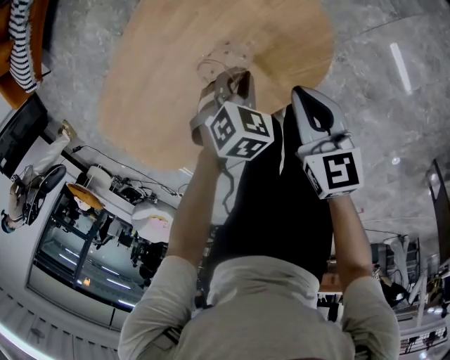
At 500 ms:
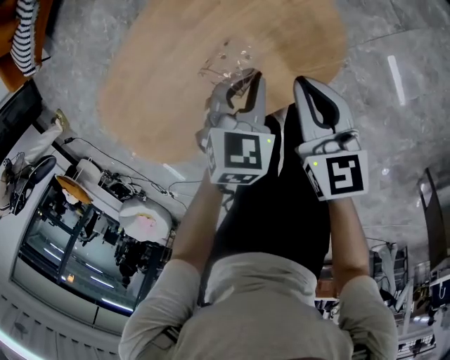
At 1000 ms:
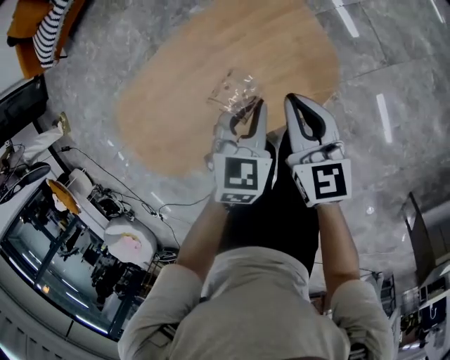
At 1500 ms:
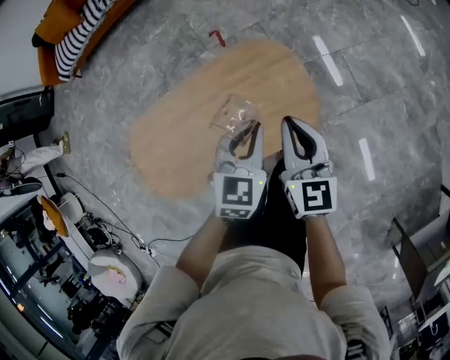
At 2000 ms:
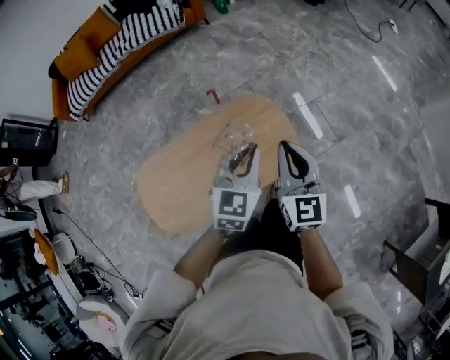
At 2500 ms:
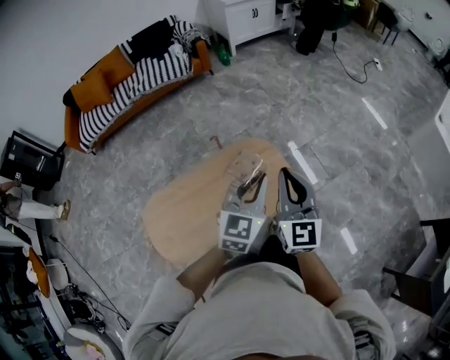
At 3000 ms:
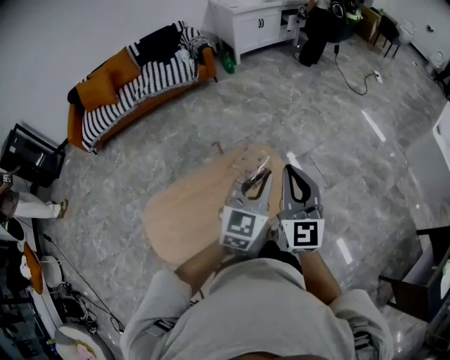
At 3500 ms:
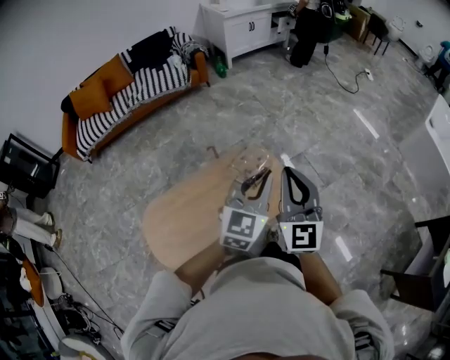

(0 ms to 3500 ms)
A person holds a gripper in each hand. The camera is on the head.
0 ms - 2000 ms: The grippers both shift upward by roughly 50 cm. The left gripper angles its fingers upward, by about 60 degrees, while the right gripper changes its angle by roughly 40 degrees.
2000 ms - 3500 ms: Both grippers travel together upward and backward, roughly 15 cm. The right gripper turns by roughly 20 degrees.

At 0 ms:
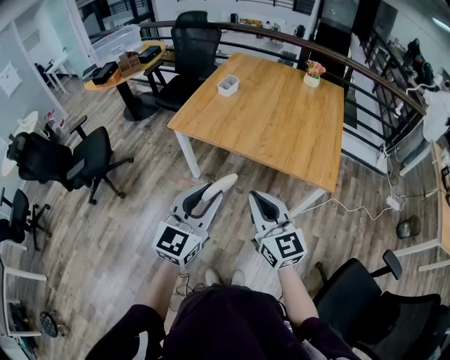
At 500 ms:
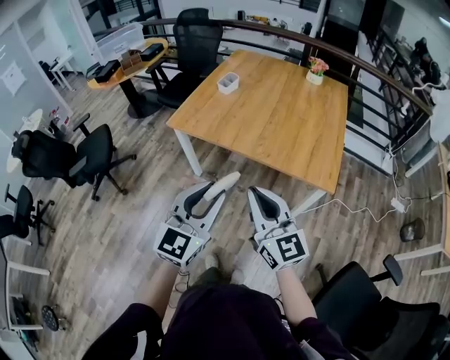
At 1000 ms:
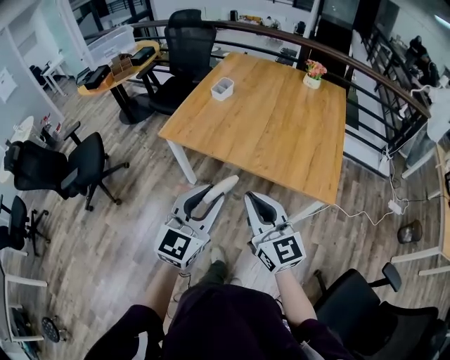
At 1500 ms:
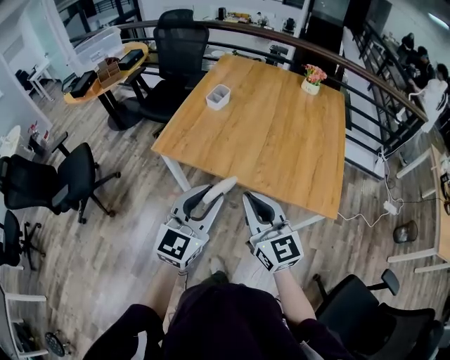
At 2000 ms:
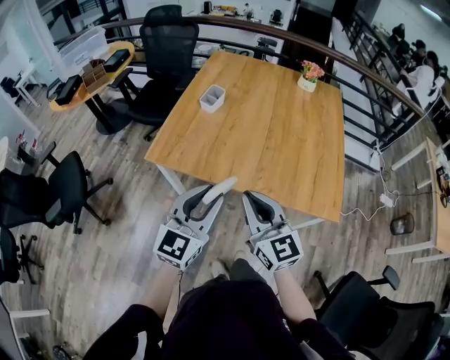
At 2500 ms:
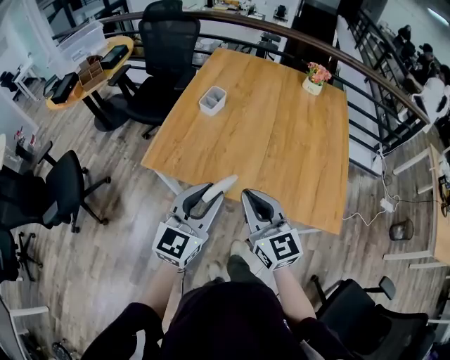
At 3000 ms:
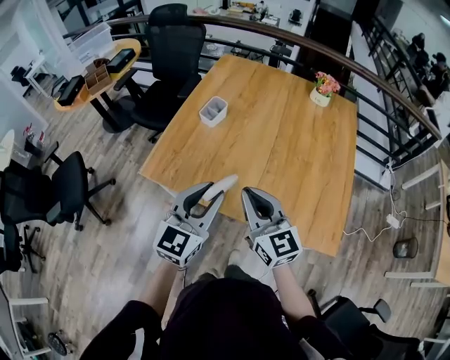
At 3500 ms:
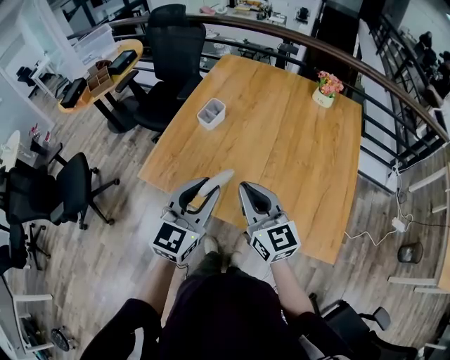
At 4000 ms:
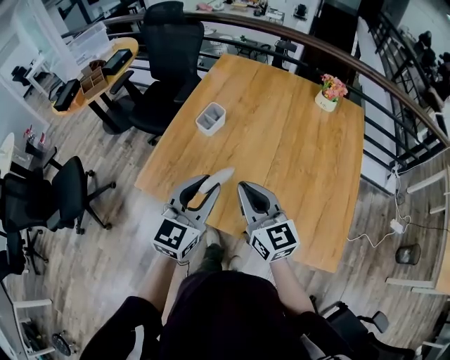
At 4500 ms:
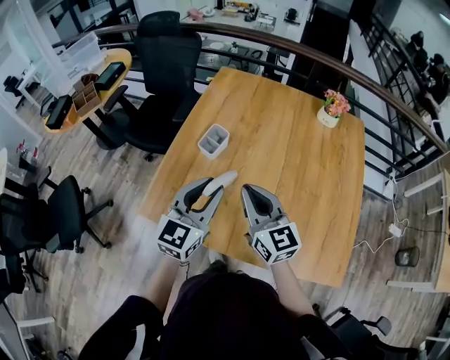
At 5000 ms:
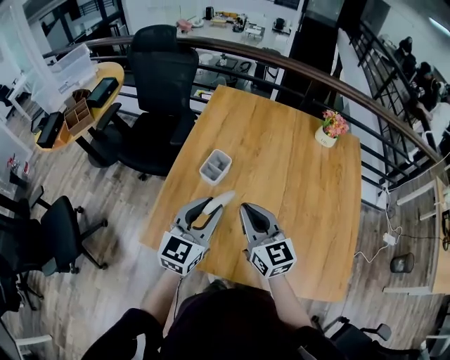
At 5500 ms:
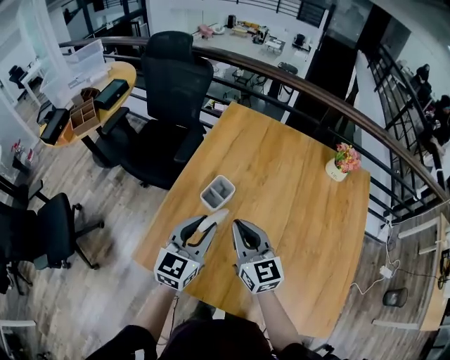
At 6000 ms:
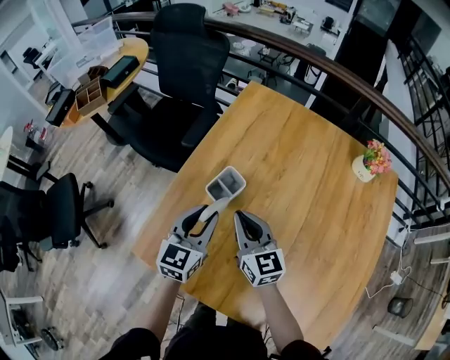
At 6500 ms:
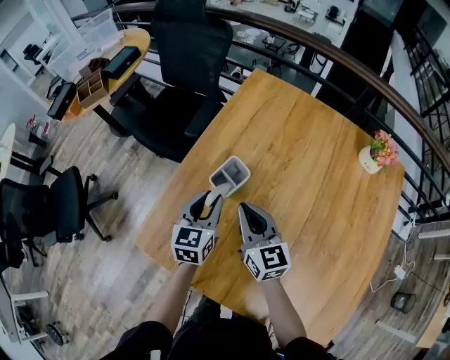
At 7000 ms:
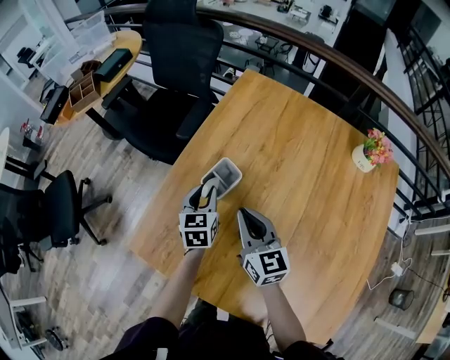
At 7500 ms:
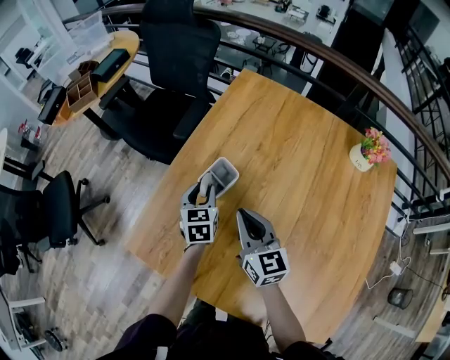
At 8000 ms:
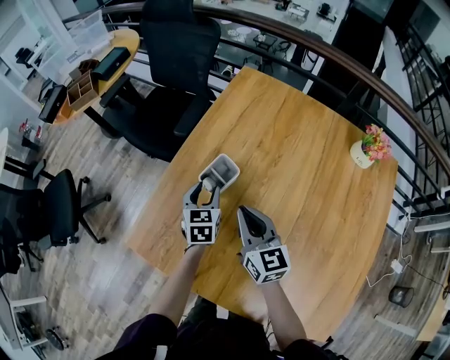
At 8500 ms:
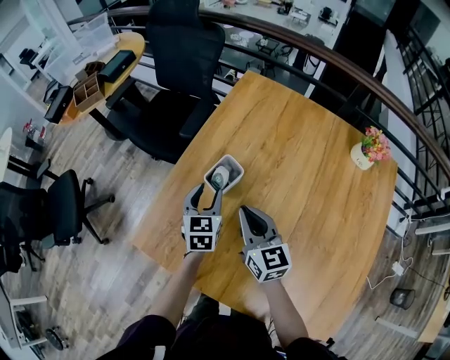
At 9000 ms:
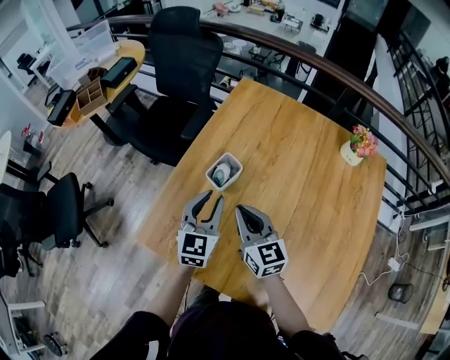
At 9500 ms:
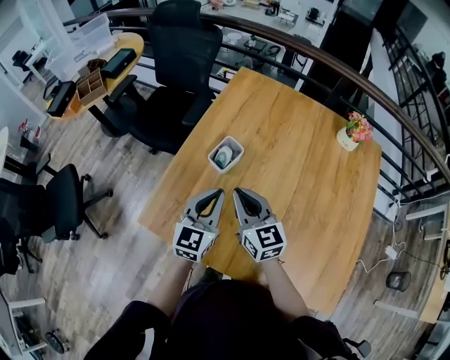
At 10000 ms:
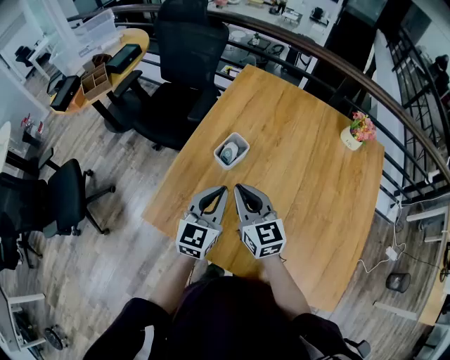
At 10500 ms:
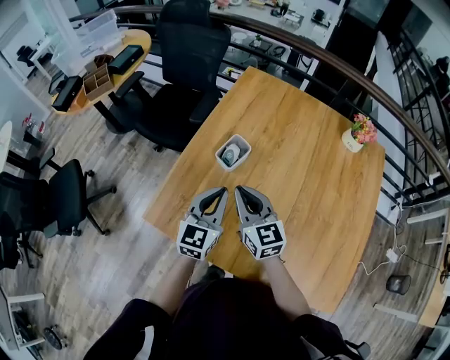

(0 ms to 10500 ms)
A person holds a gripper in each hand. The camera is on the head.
0 ms - 2000 ms: The grippers both shift forward by some 30 cm.
2000 ms - 4000 ms: The grippers both shift forward by roughly 25 cm.
4000 ms - 6500 ms: The right gripper shifts about 35 cm forward, while the left gripper shifts approximately 40 cm forward and downward, and swivels approximately 30 degrees.
8500 ms - 10500 ms: The right gripper shifts about 10 cm backward, to the left and upward; the left gripper heads backward and upward, covering about 20 cm, rotates approximately 30 degrees, and closes.

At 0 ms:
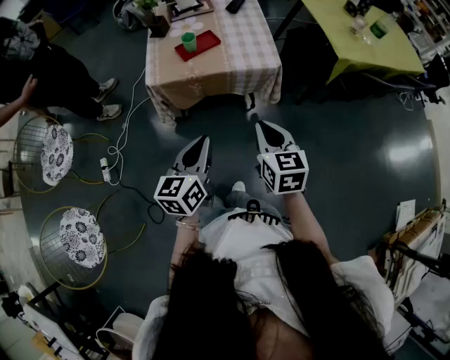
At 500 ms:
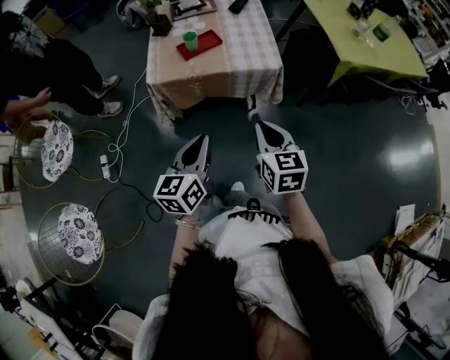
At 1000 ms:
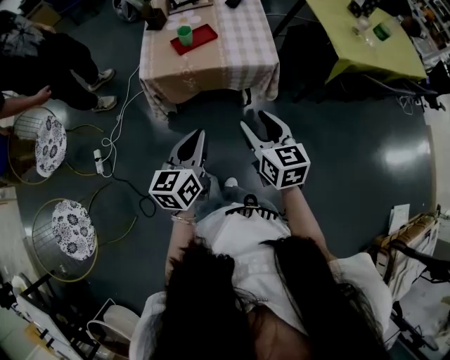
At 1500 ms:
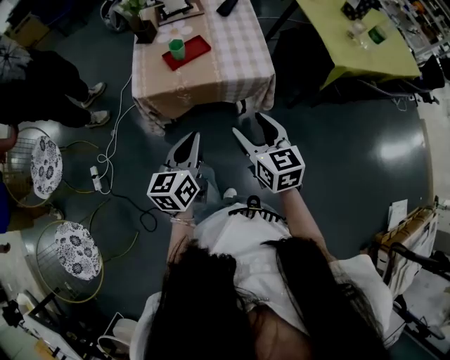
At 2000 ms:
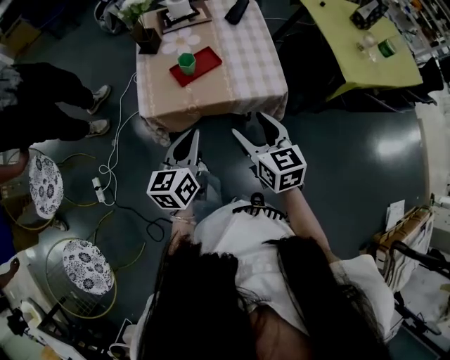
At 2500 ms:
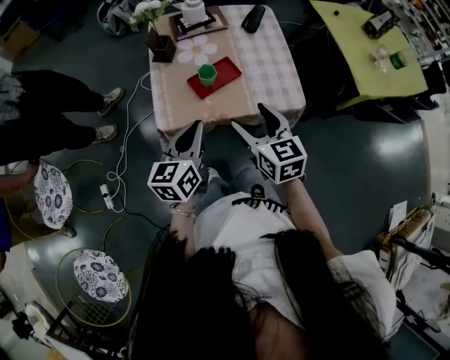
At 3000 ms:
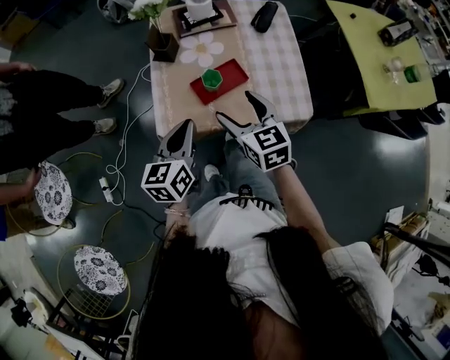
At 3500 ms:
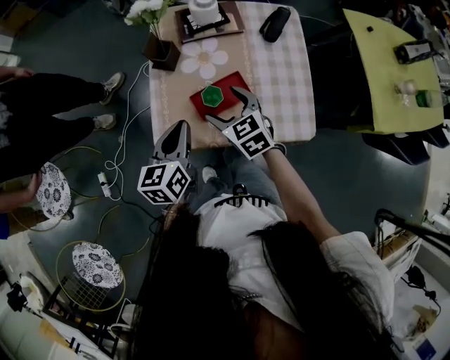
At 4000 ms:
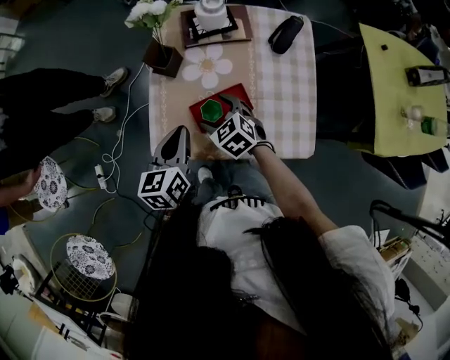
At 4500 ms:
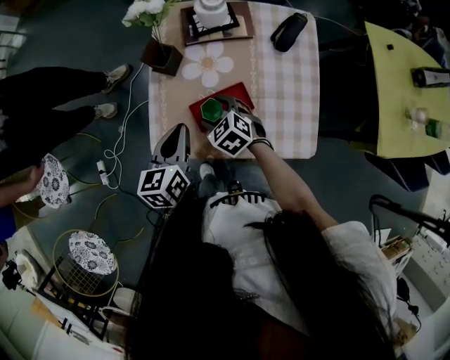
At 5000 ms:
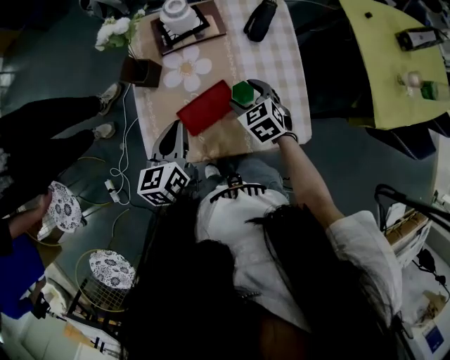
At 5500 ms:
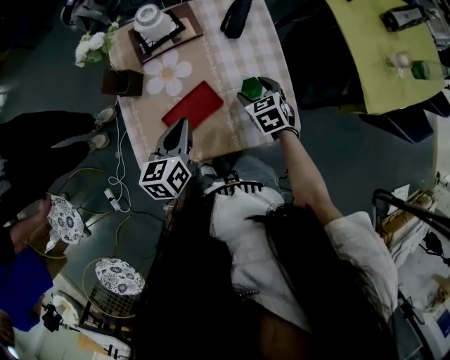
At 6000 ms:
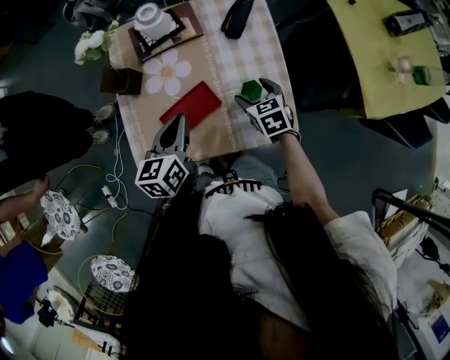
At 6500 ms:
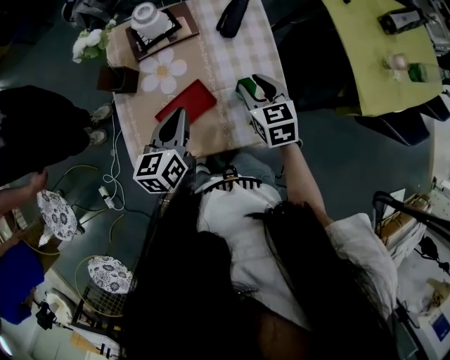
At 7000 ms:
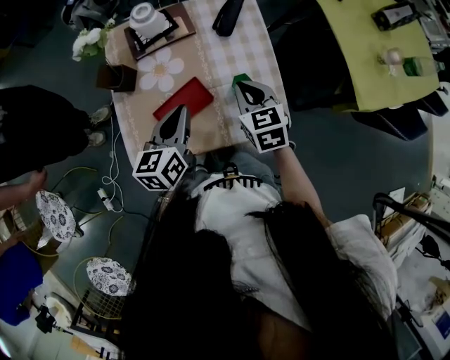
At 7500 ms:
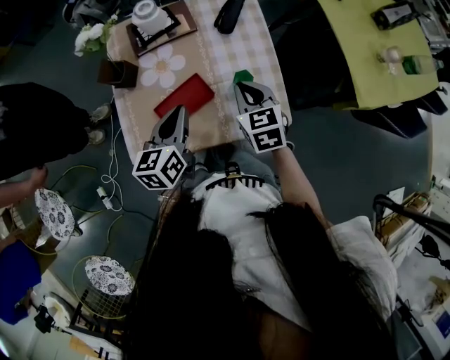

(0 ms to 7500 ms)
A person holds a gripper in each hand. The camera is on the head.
0 ms - 2000 ms: The right gripper is displaced forward and to the left by approximately 20 cm, and opens its fingers; the left gripper moves forward, roughly 20 cm.
2000 ms - 4000 ms: The left gripper travels forward by about 25 cm, while the right gripper heads forward, downward and to the left, covering some 35 cm, and changes its angle by approximately 40 degrees.
4000 ms - 5500 ms: The left gripper moves approximately 10 cm, while the right gripper changes place by roughly 25 cm, and turns by some 30 degrees.
5500 ms - 7500 ms: The right gripper is displaced upward by some 10 cm, and closes its fingers.

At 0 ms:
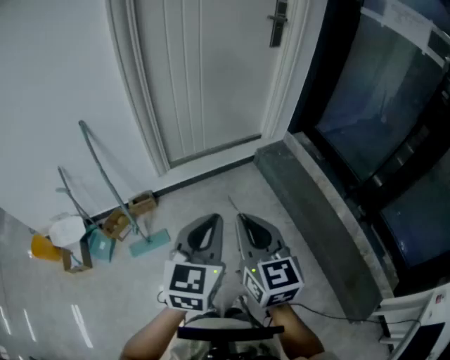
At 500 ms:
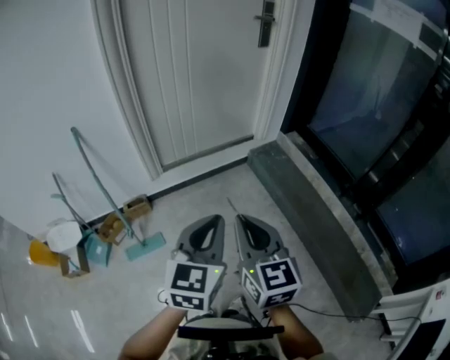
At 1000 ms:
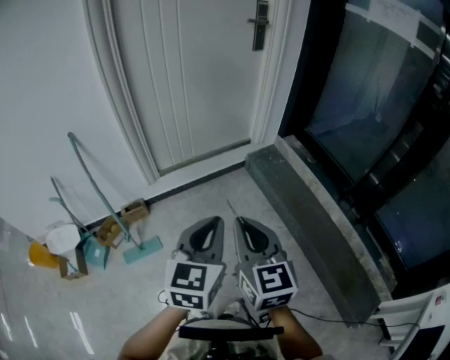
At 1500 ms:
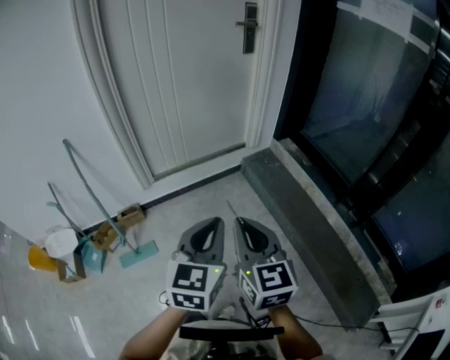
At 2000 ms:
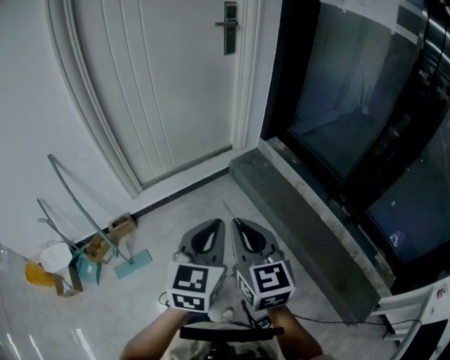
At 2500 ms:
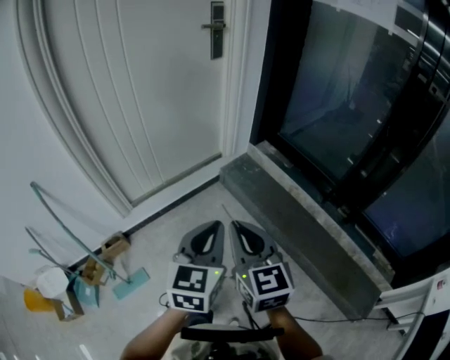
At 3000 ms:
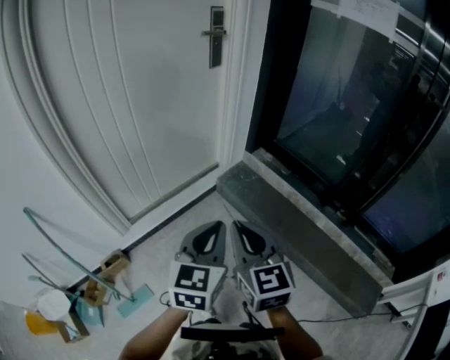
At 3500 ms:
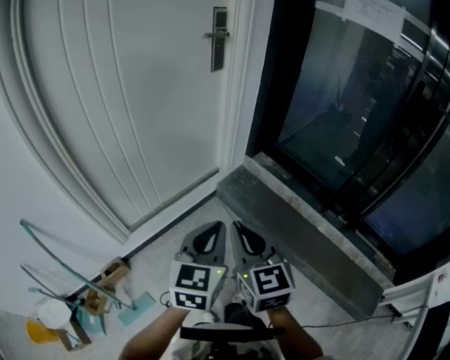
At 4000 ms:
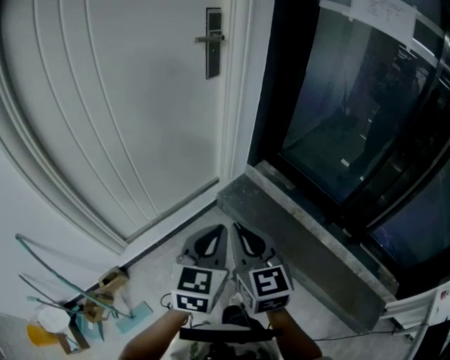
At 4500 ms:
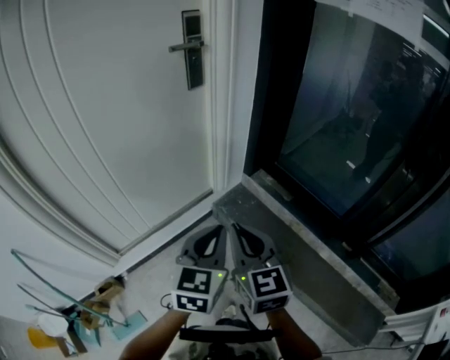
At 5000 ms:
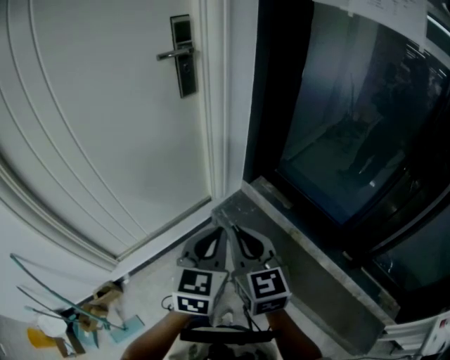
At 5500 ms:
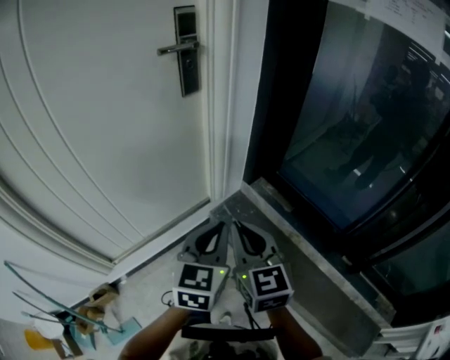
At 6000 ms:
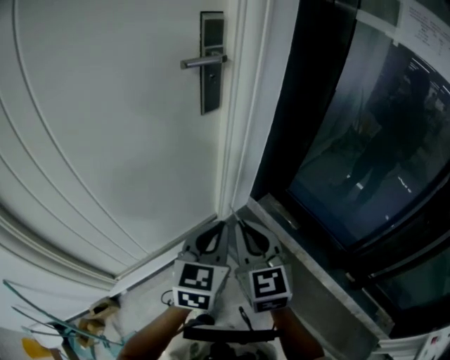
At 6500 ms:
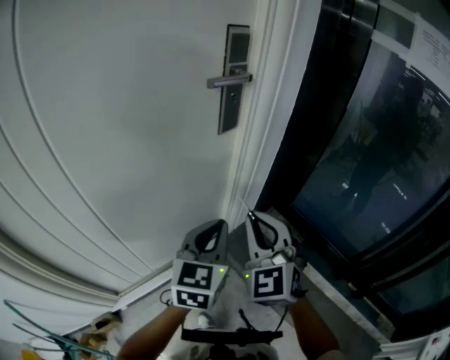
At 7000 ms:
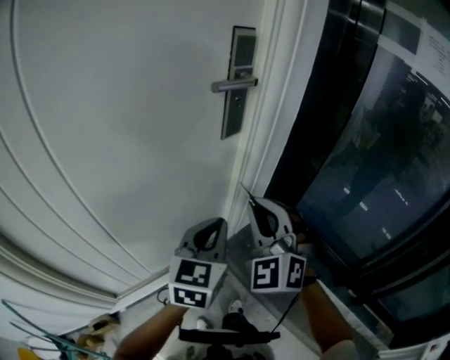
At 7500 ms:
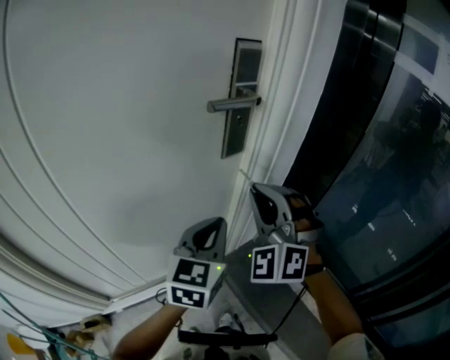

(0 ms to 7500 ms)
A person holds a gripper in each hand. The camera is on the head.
0 ms - 2000 ms: Both grippers move to the right, approximately 15 cm.
2000 ms - 4000 ms: The two grippers go about 25 cm forward.
4000 ms - 5500 ms: Both grippers move forward and to the right, some 20 cm.
5500 ms - 7500 ms: The left gripper shifts about 25 cm forward and to the left, while the right gripper shifts about 30 cm forward, upward and to the left, and twists some 70 degrees counterclockwise, seen from behind.
